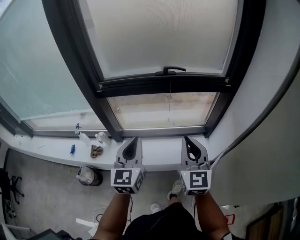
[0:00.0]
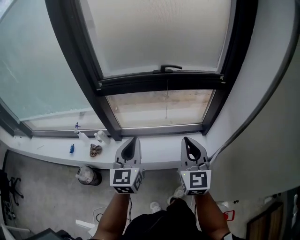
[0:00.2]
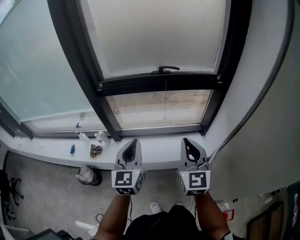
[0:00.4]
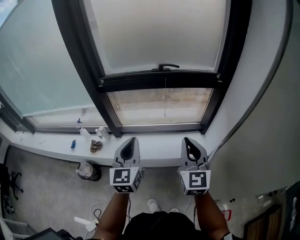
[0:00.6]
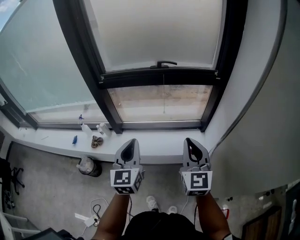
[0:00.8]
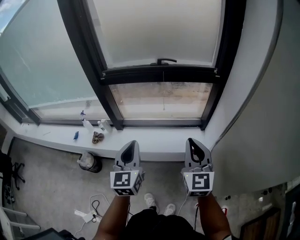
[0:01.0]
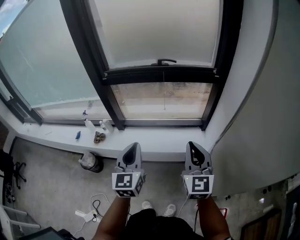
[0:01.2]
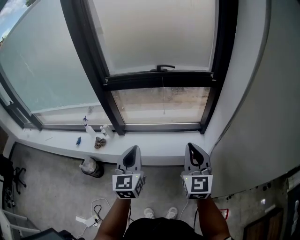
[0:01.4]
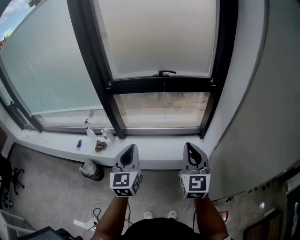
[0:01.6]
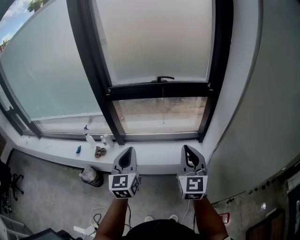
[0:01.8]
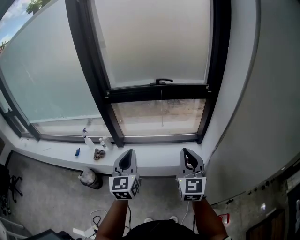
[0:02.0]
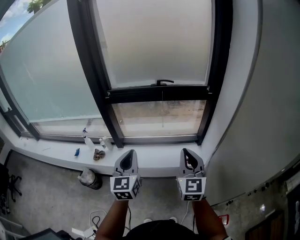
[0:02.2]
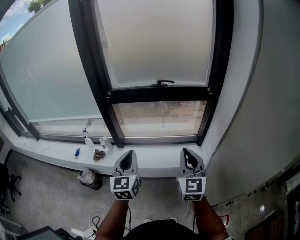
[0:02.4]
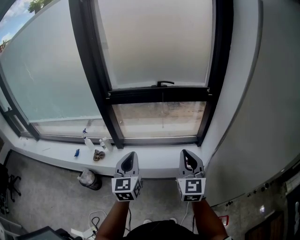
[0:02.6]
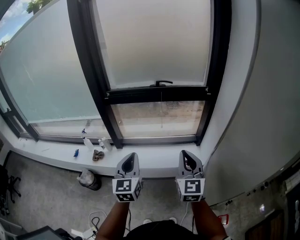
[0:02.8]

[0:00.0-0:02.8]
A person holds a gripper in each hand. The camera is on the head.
0:00.0 to 0:01.4: The left gripper heads backward, covering some 20 cm, while the right gripper travels backward and to the right by roughly 20 cm.
0:01.4 to 0:02.8: The grippers make only small movements.

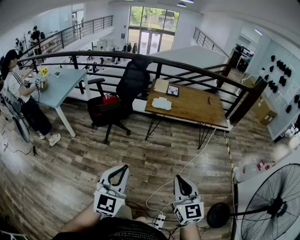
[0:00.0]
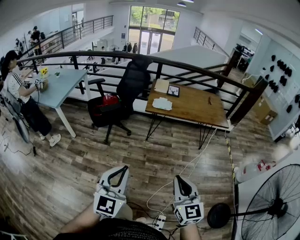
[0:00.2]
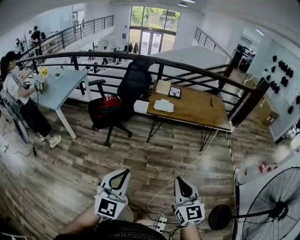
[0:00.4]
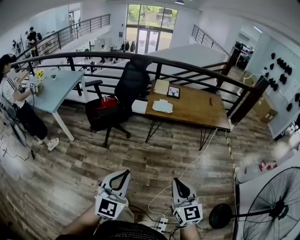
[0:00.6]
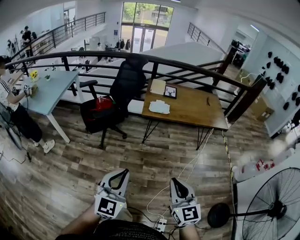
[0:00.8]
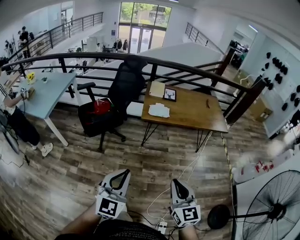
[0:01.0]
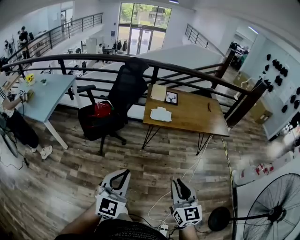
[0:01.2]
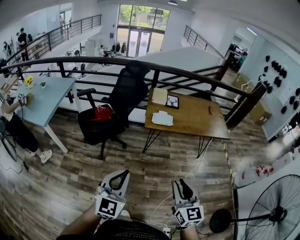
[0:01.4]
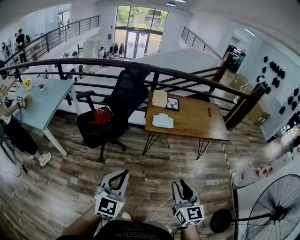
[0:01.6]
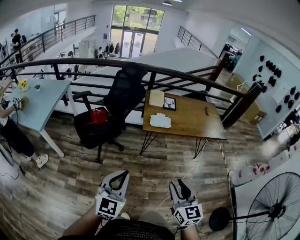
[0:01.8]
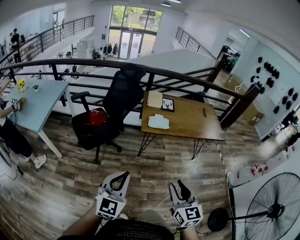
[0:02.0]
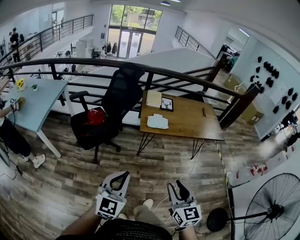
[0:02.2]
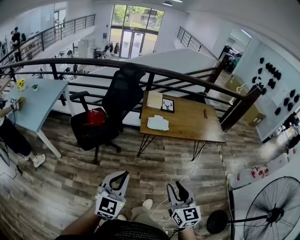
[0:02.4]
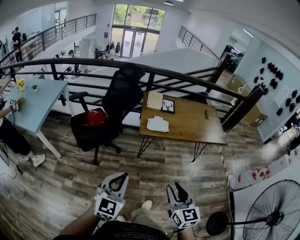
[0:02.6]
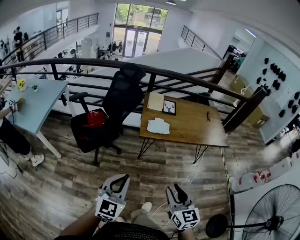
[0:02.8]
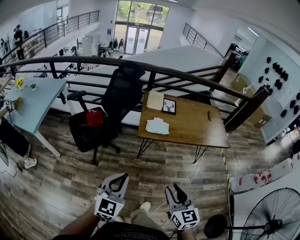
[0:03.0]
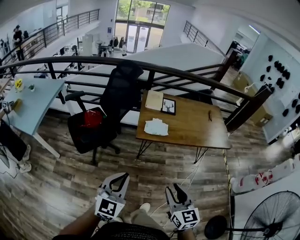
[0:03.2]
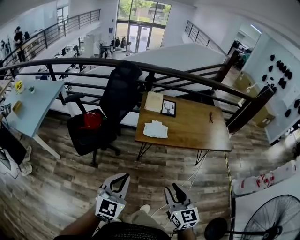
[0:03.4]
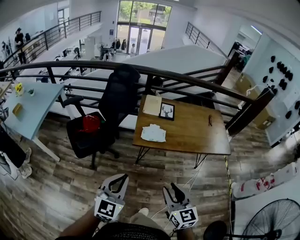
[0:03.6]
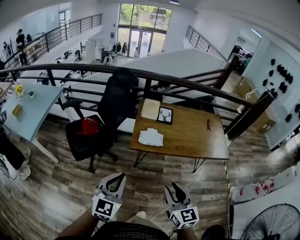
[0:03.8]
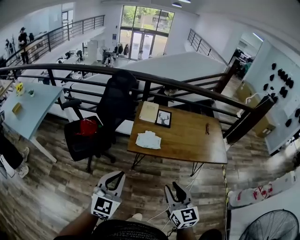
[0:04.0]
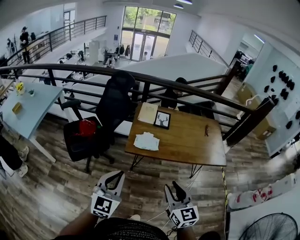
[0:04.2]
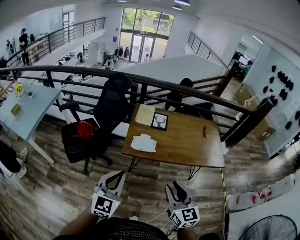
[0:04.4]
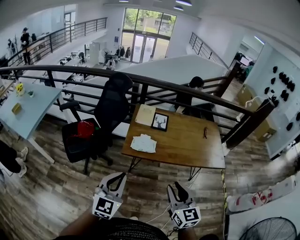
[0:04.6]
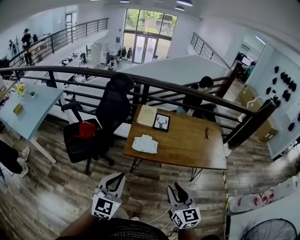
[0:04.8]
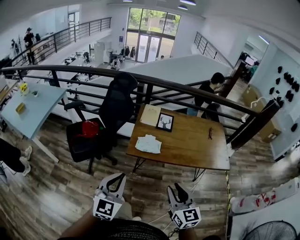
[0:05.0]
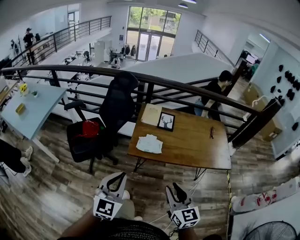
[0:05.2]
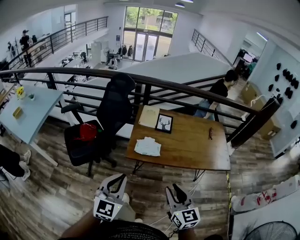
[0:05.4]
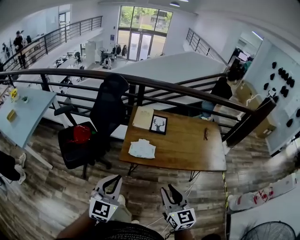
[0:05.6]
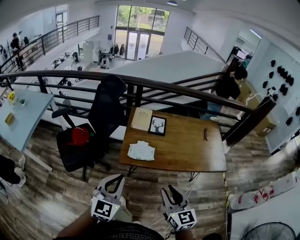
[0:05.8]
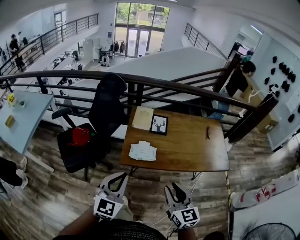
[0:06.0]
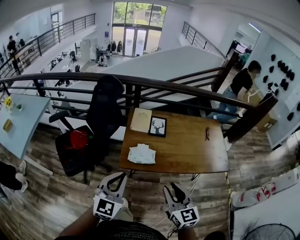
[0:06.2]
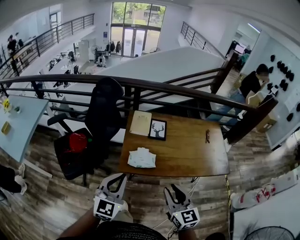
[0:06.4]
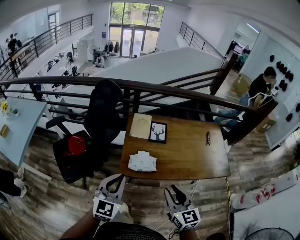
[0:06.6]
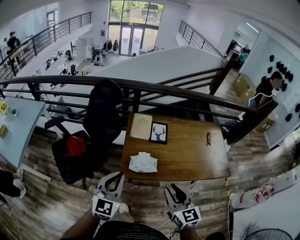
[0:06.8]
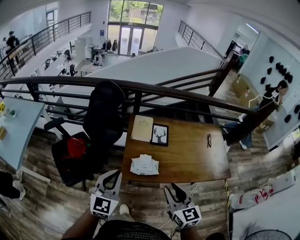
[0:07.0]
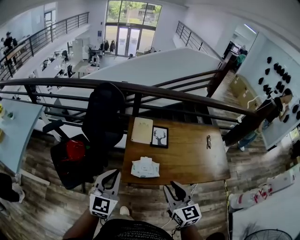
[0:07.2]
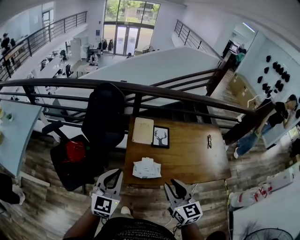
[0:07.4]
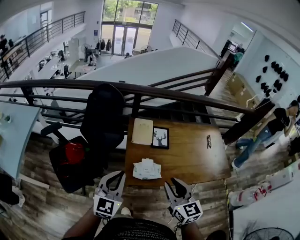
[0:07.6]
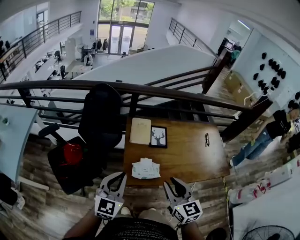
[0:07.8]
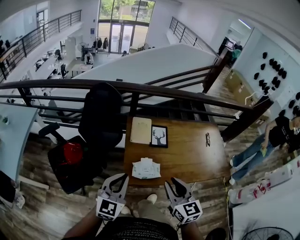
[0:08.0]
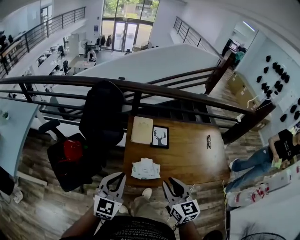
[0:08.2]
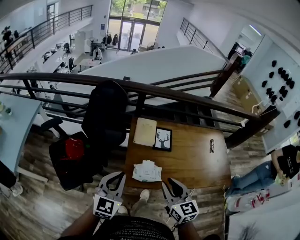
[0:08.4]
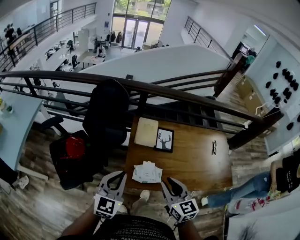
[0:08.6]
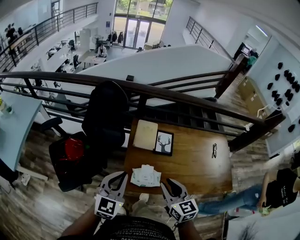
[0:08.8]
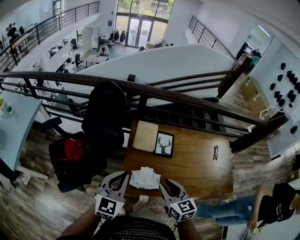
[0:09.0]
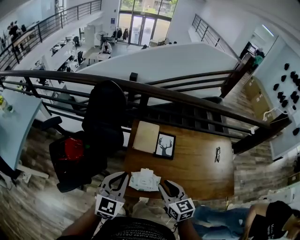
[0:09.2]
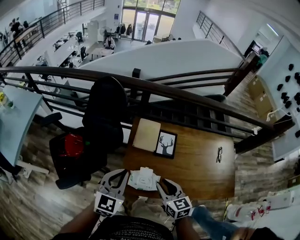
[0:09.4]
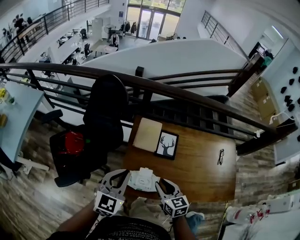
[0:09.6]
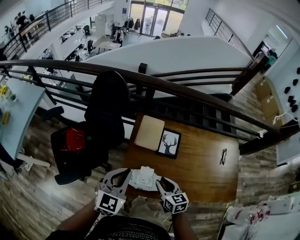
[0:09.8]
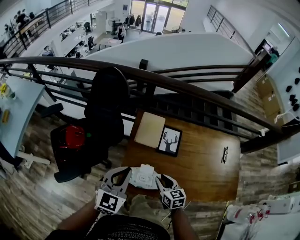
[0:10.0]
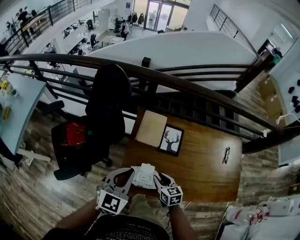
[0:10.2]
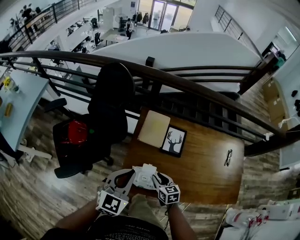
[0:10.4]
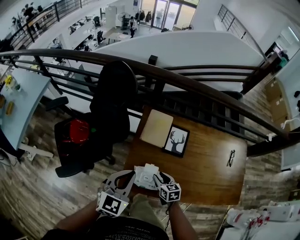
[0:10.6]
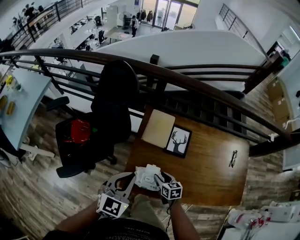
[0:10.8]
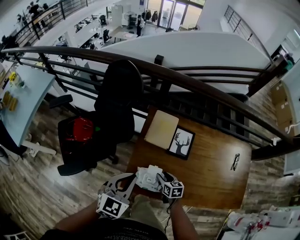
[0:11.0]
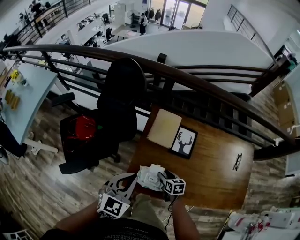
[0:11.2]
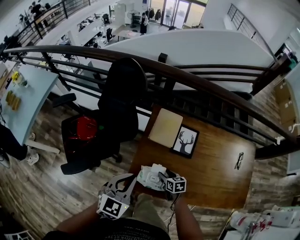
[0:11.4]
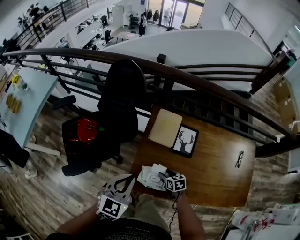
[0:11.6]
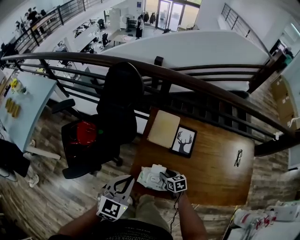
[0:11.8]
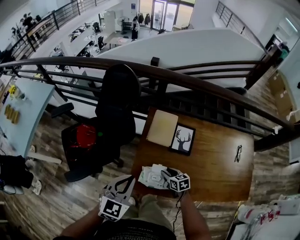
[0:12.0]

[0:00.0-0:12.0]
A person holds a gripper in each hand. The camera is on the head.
0:00.0 to 0:01.6: Both grippers move forward and to the left, some 25 cm. The right gripper opens.
0:01.6 to 0:03.0: Both grippers move forward, about 10 cm.
0:03.0 to 0:04.4: Both grippers travel together forward and to the right, roughly 20 cm.
0:04.4 to 0:06.0: Both grippers travel together forward, approximately 10 cm.
0:06.0 to 0:07.6: Both grippers move forward and to the left, approximately 20 cm.
0:07.6 to 0:09.0: The left gripper travels forward by roughly 10 cm. Meanwhile the right gripper goes some 15 cm forward and downward.
0:09.0 to 0:10.4: The right gripper is displaced downward by about 25 cm, and swivels approximately 20 degrees, while the left gripper heads downward, covering roughly 10 cm.
0:10.4 to 0:12.0: The right gripper travels downward by about 5 cm.

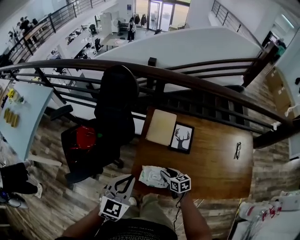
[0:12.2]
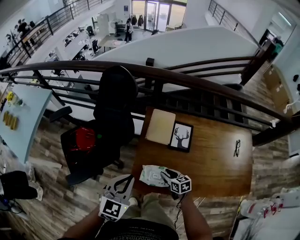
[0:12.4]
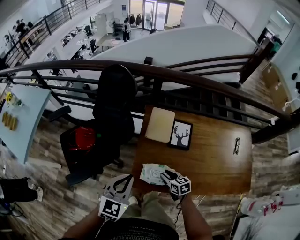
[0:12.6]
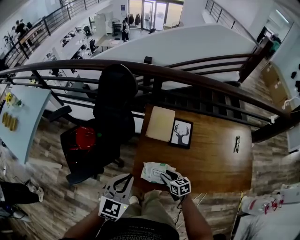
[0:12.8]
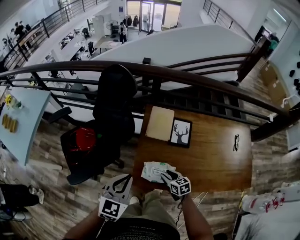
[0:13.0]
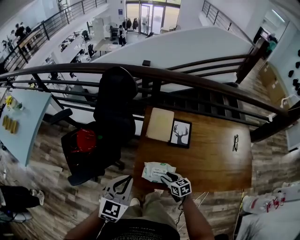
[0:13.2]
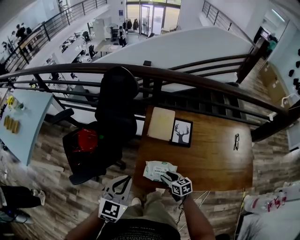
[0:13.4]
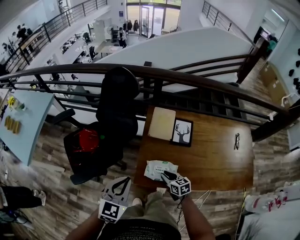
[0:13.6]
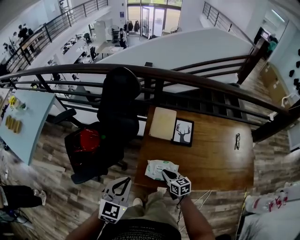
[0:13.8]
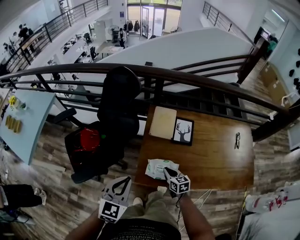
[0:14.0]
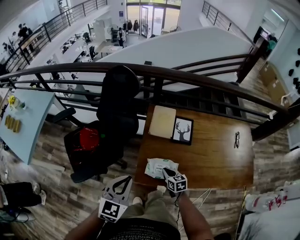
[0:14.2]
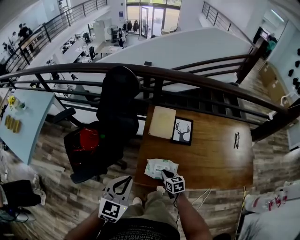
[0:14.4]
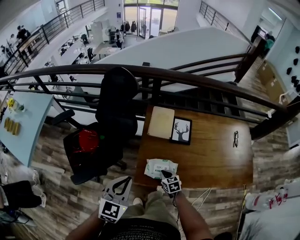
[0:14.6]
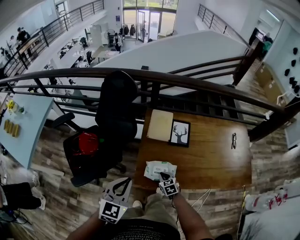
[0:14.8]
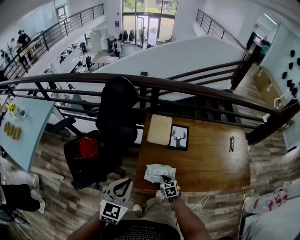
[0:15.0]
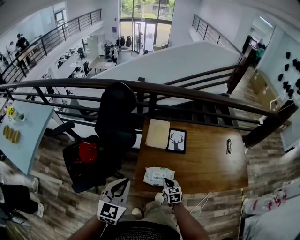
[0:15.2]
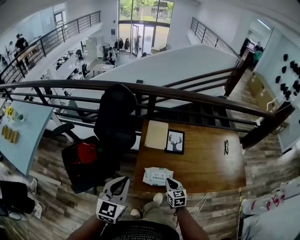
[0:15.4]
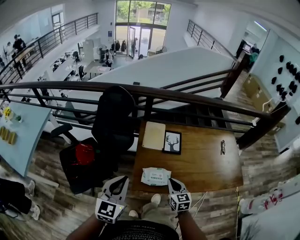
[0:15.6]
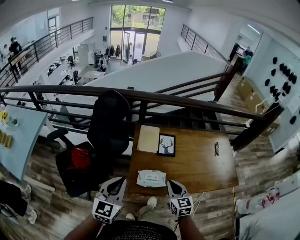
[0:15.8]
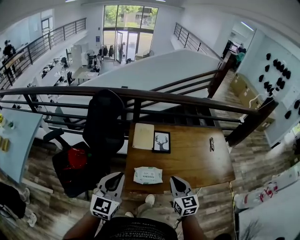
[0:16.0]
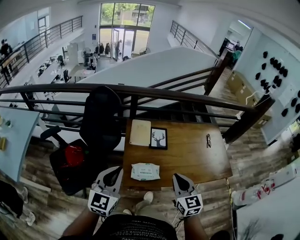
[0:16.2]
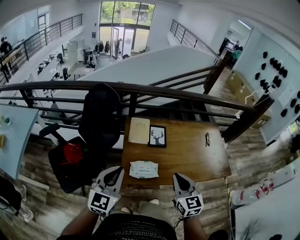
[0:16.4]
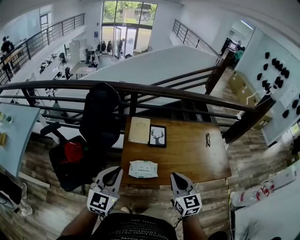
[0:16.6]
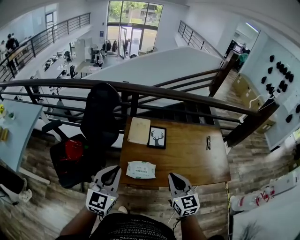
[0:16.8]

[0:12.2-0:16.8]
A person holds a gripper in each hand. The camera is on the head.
0:12.2 to 0:13.8: The left gripper travels backward and to the left by about 10 cm; the right gripper ends up some 5 cm from where it was, and closes its fingers.
0:13.8 to 0:15.2: The right gripper rotates some 20 degrees, while the left gripper moves upward, about 5 cm.
0:15.2 to 0:16.8: The right gripper heads upward, covering approximately 30 cm, and turns by approximately 30 degrees. The left gripper moves upward, approximately 5 cm.

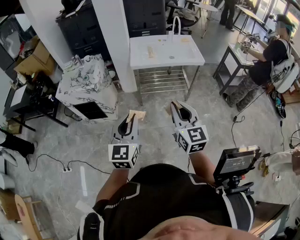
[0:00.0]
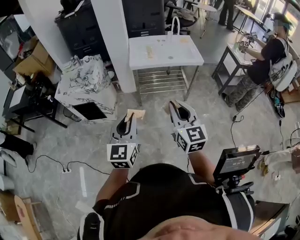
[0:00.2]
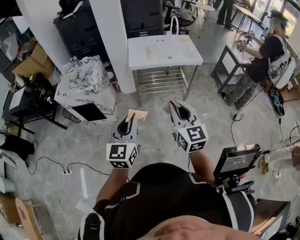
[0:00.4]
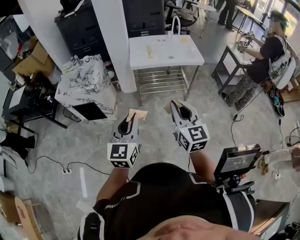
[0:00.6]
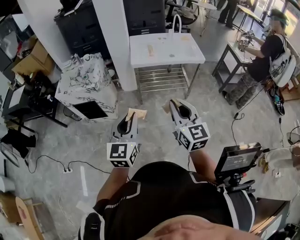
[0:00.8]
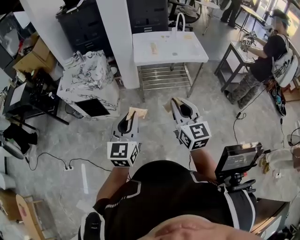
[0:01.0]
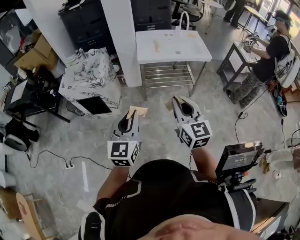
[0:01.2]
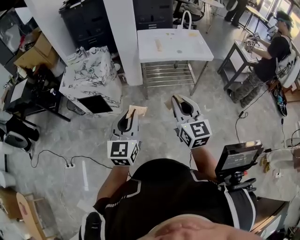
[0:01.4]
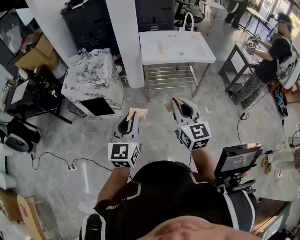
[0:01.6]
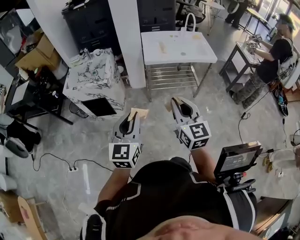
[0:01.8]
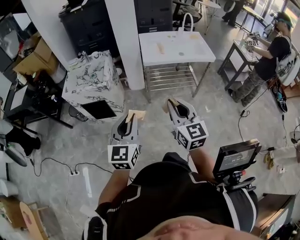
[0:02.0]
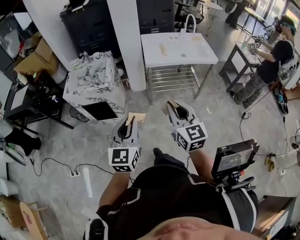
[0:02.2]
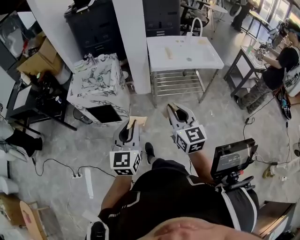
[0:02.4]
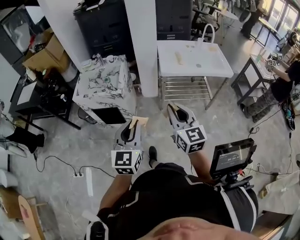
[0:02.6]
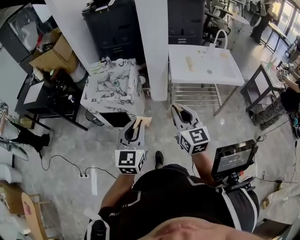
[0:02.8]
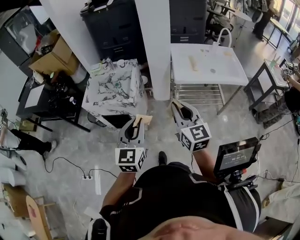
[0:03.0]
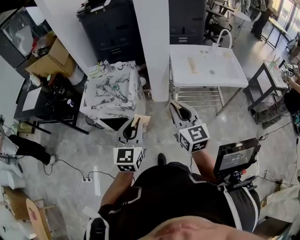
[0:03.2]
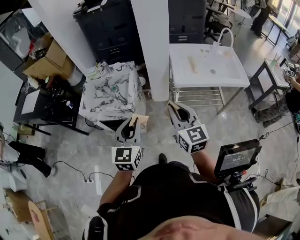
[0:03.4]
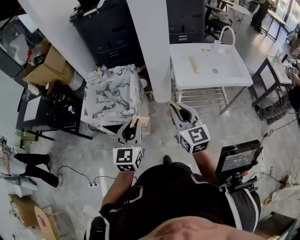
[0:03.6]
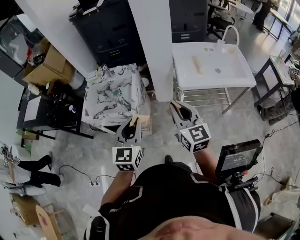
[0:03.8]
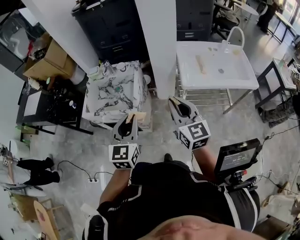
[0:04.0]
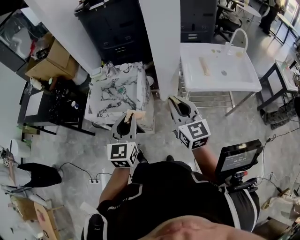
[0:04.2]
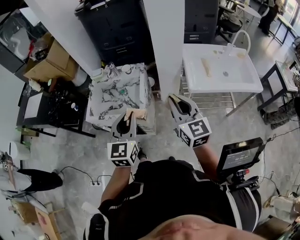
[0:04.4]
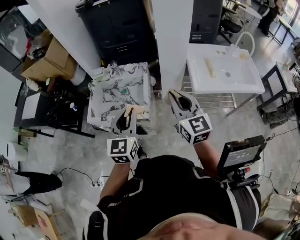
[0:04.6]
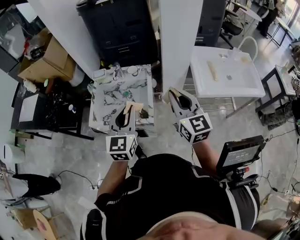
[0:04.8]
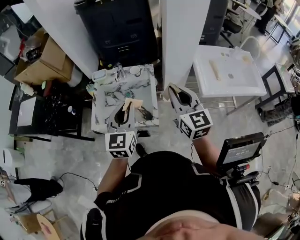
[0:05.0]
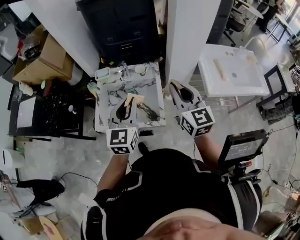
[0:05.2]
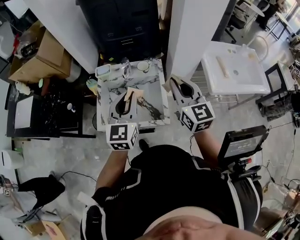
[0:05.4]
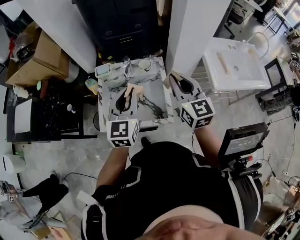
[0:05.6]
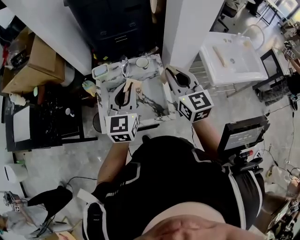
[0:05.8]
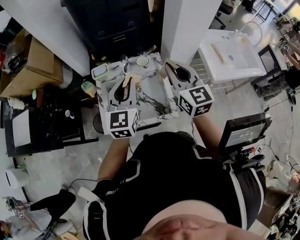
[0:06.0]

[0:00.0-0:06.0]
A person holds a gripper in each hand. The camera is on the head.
0:00.0 to 0:01.6: The two grippers go approximately 10 cm to the left.
0:01.6 to 0:03.0: Both grippers move forward and to the left, roughly 25 cm.
0:03.0 to 0:04.4: Both grippers travel together forward and to the left, approximately 20 cm.
0:04.4 to 0:06.0: The grippers both shift forward and to the left by roughly 30 cm.
